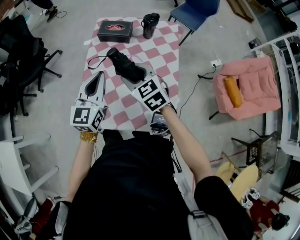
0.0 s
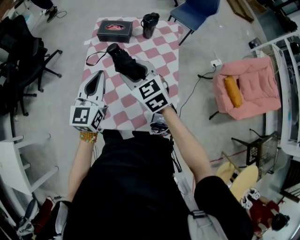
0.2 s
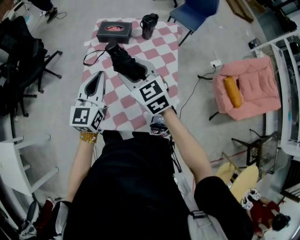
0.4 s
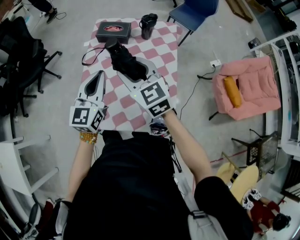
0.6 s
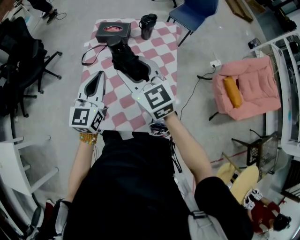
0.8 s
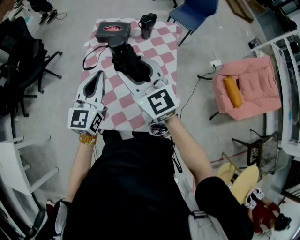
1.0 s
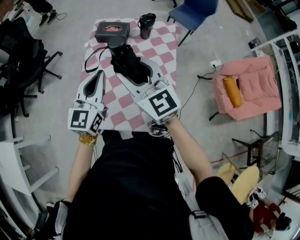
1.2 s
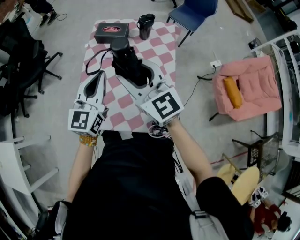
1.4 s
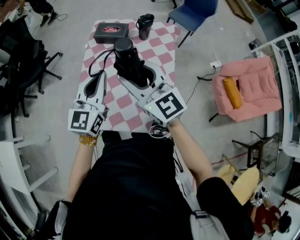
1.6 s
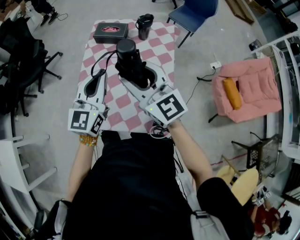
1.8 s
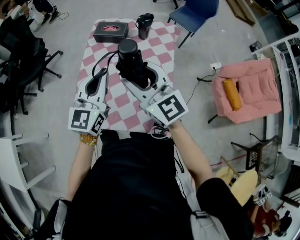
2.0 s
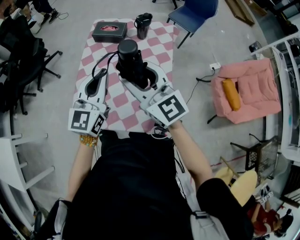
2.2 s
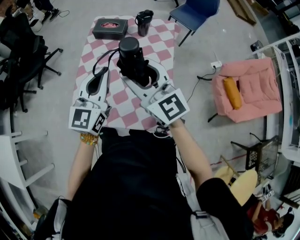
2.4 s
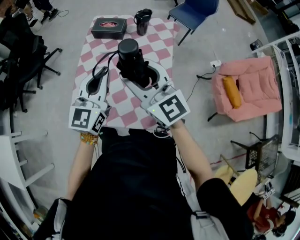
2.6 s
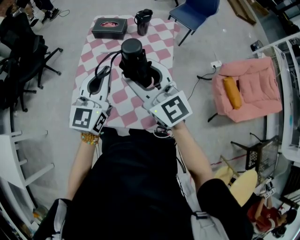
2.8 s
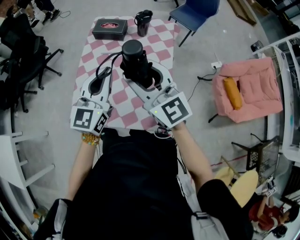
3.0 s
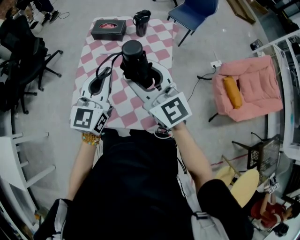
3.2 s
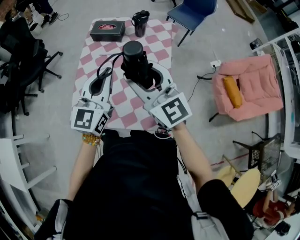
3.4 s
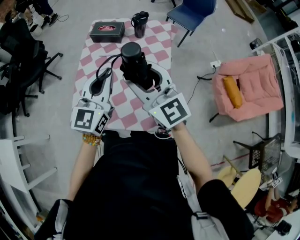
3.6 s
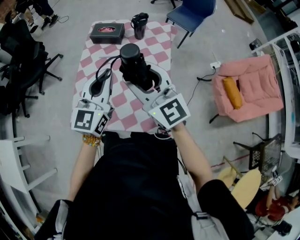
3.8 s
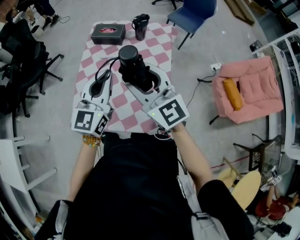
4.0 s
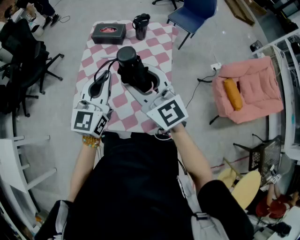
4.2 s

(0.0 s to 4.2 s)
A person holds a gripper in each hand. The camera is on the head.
0.0 s - 1.4 s: The right gripper travels upward by some 15 cm, and points its fingers approximately 30 degrees further upward. The left gripper changes place by about 5 cm.
1.4 s - 2.8 s: The right gripper changes place by approximately 5 cm, while the left gripper moves approximately 5 cm.
2.8 s - 4.2 s: The grippers move only a little.

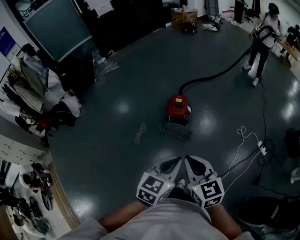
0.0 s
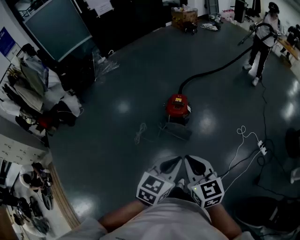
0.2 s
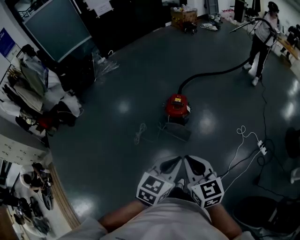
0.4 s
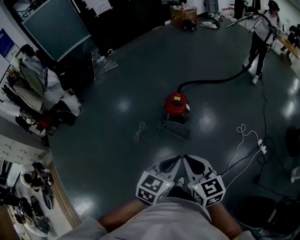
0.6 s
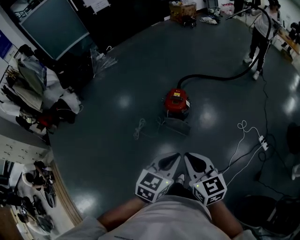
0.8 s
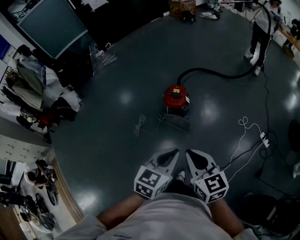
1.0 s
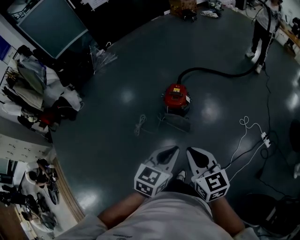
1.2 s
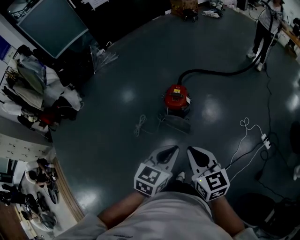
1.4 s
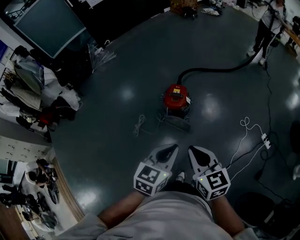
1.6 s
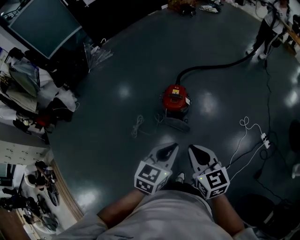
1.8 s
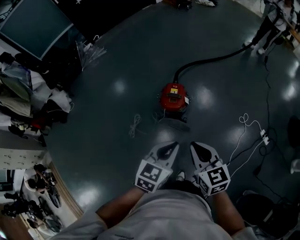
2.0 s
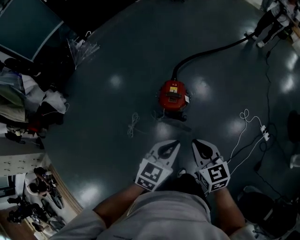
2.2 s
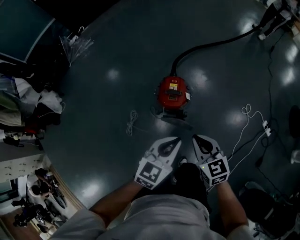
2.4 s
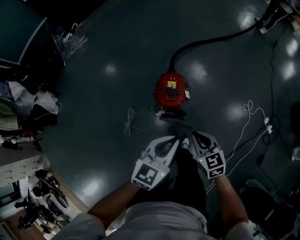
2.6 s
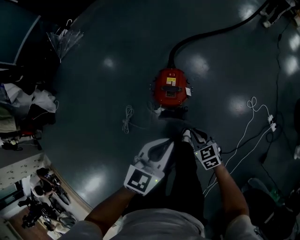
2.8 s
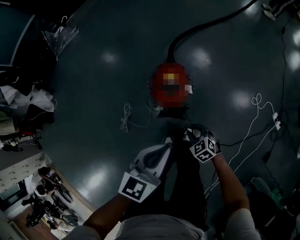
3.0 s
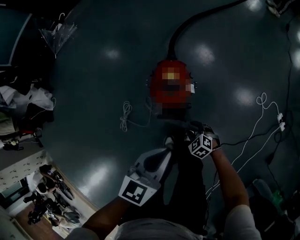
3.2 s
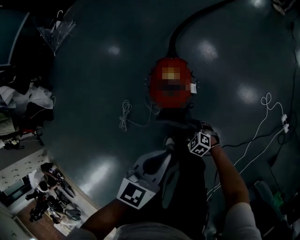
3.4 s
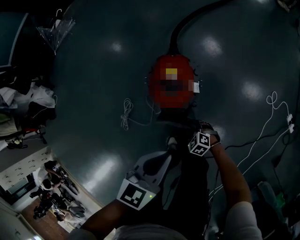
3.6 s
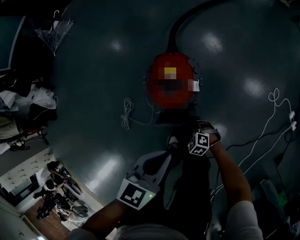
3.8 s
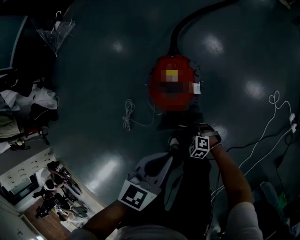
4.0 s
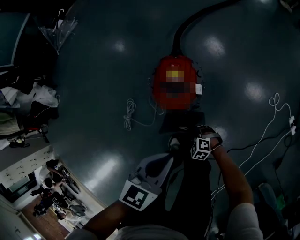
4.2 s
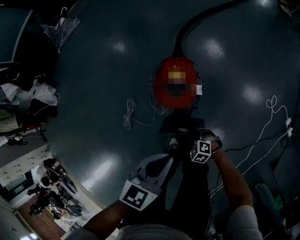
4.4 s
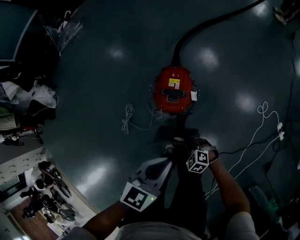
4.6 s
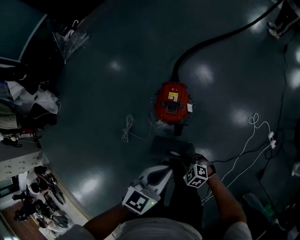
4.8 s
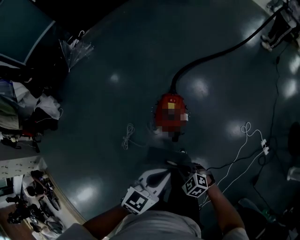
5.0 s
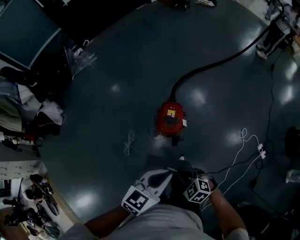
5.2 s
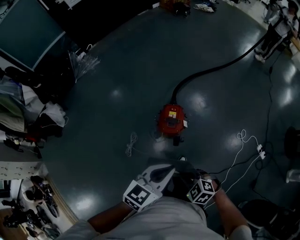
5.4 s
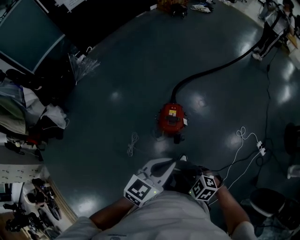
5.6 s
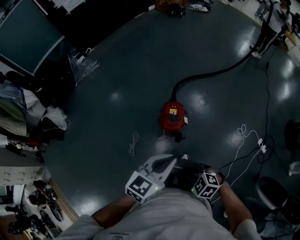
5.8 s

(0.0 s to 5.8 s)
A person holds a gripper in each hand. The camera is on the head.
0.0 s - 1.4 s: The right gripper travels to the right and forward by some 10 cm, while the left gripper shifts approximately 5 cm forward.
1.4 s - 2.8 s: The right gripper is displaced downward and forward by roughly 50 cm, and turns by approximately 30 degrees, while the left gripper heads forward and downward, covering about 35 cm.
2.8 s - 4.4 s: The right gripper is displaced downward by roughly 25 cm, swivels roughly 40 degrees, and opens and closes again, while the left gripper goes roughly 15 cm downward.
4.4 s - 5.8 s: The left gripper travels upward by some 35 cm, while the right gripper shifts roughly 50 cm upward.

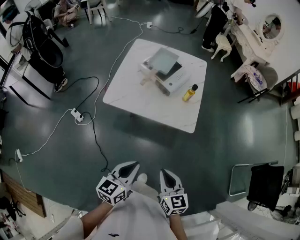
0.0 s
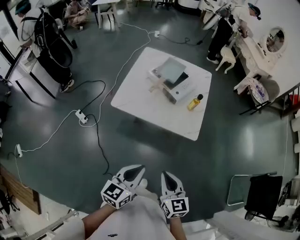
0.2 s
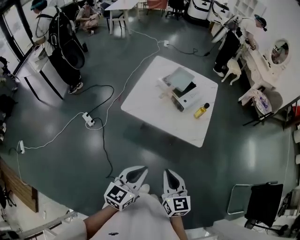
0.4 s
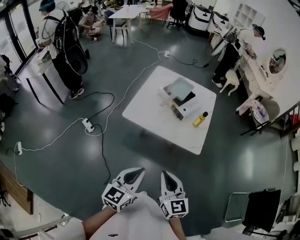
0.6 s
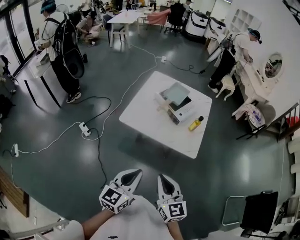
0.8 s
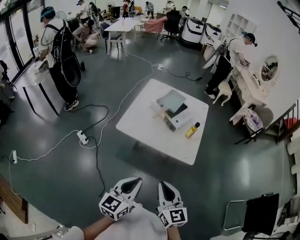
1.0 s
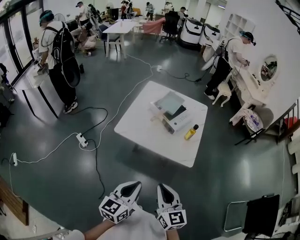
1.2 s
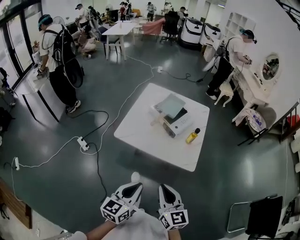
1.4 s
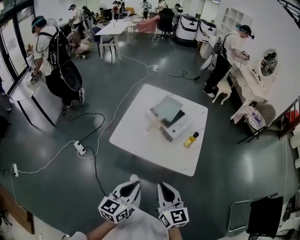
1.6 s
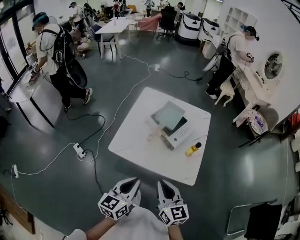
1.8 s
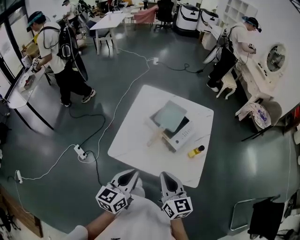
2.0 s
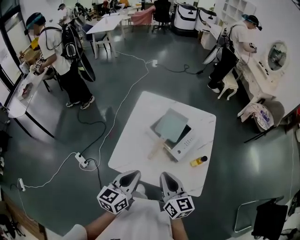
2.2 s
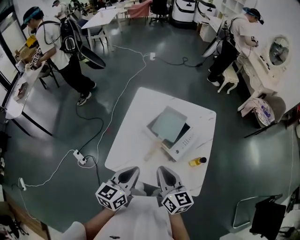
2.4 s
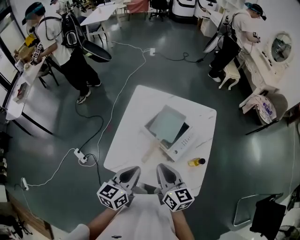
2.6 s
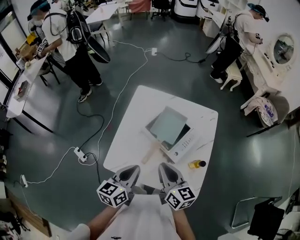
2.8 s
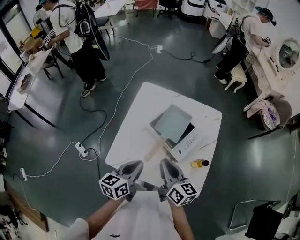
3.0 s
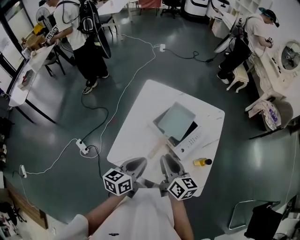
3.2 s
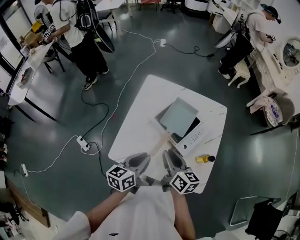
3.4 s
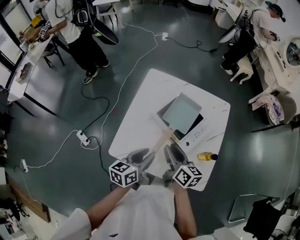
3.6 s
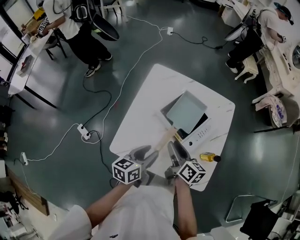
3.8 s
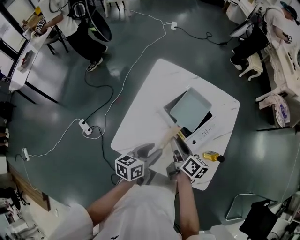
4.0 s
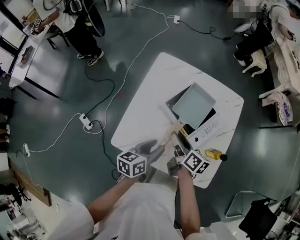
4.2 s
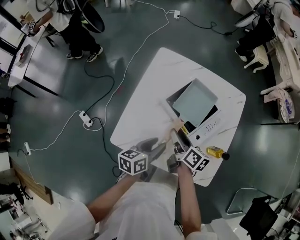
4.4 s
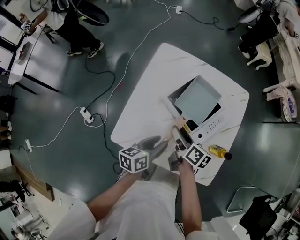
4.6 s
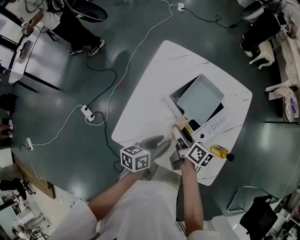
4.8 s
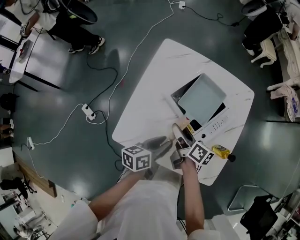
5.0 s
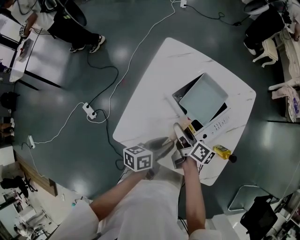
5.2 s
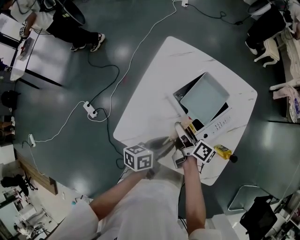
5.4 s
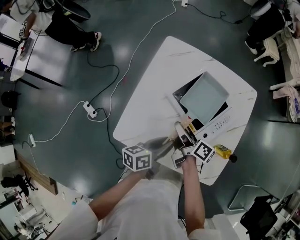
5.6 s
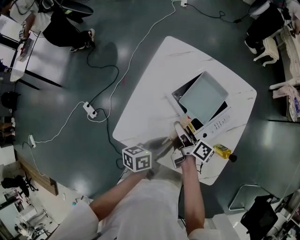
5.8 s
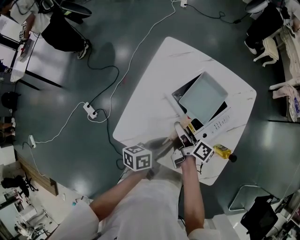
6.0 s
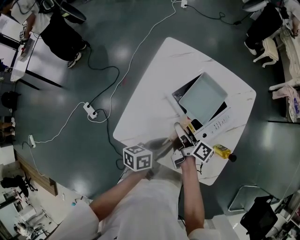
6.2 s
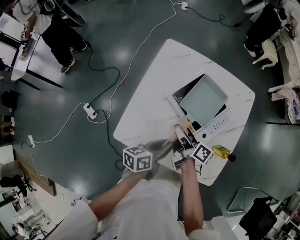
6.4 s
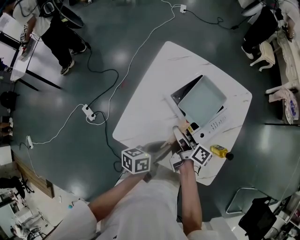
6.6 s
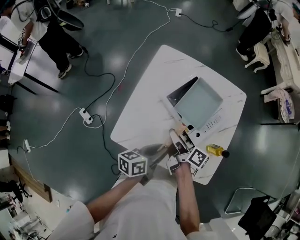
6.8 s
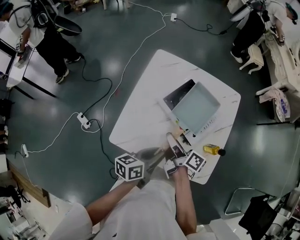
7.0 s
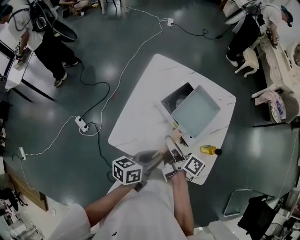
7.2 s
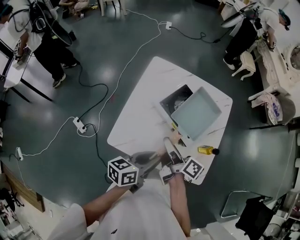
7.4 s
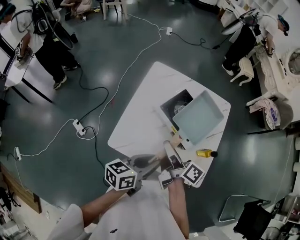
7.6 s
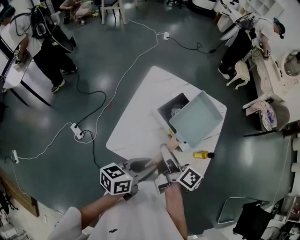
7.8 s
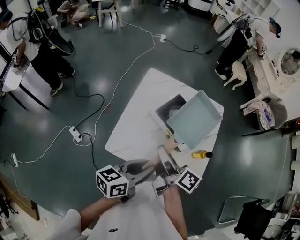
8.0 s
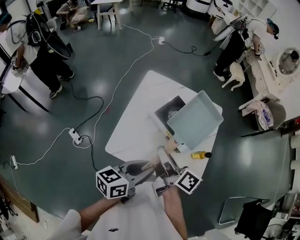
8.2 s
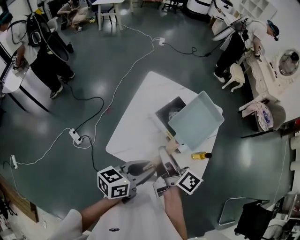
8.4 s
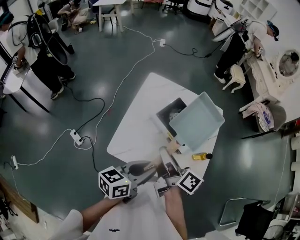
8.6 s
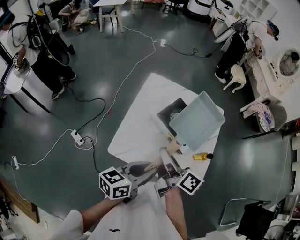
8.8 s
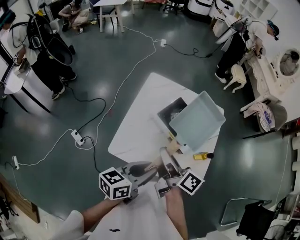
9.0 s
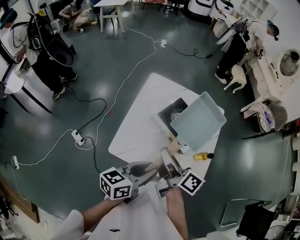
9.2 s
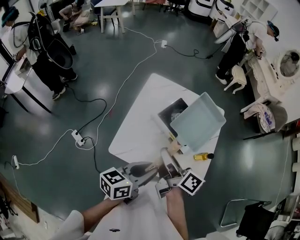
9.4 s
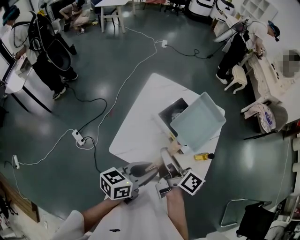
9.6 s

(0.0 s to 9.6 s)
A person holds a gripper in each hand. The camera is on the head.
0.0 s - 1.6 s: The left gripper travels forward and upward by roughly 10 cm. Meanwhile the right gripper heads forward, upward and to the left, covering approximately 15 cm.
1.6 s - 3.2 s: Both grippers travel together forward, approximately 35 cm. The right gripper changes its angle by roughly 30 degrees.
3.2 s - 4.8 s: Both grippers move downward and forward, roughly 15 cm. The right gripper swivels roughly 30 degrees, and opens its fingers. Meanwhile the left gripper opens up.
4.8 s - 6.4 s: The right gripper closes up.
6.4 s - 8.0 s: Both grippers move upward and backward, approximately 20 cm.
8.0 s - 9.6 s: The grippers make only small movements.

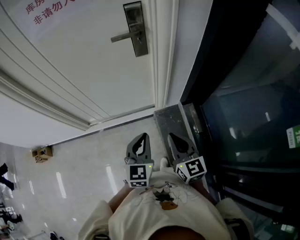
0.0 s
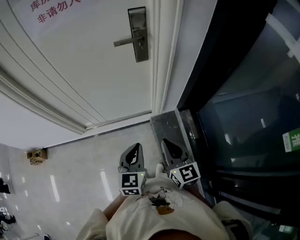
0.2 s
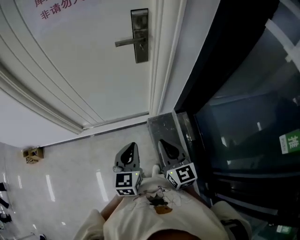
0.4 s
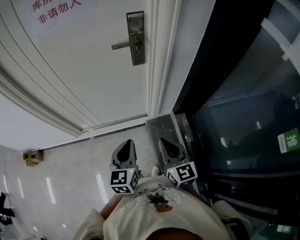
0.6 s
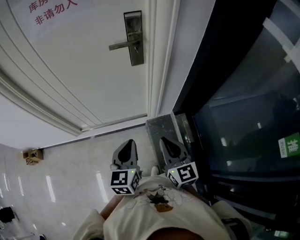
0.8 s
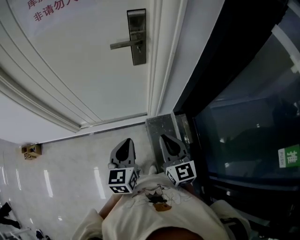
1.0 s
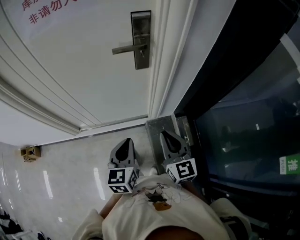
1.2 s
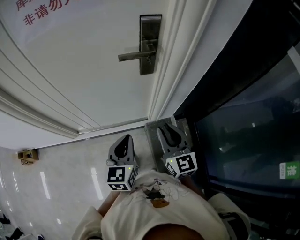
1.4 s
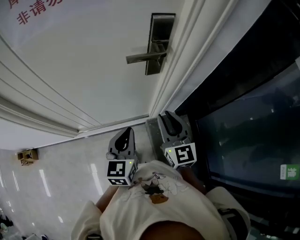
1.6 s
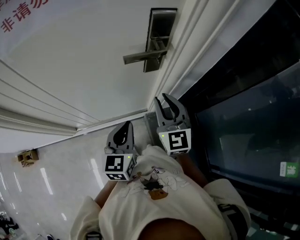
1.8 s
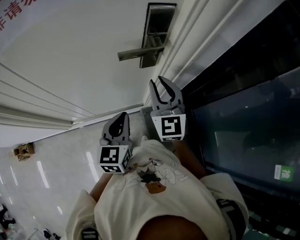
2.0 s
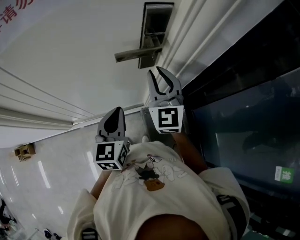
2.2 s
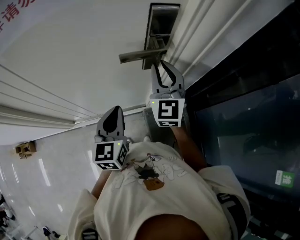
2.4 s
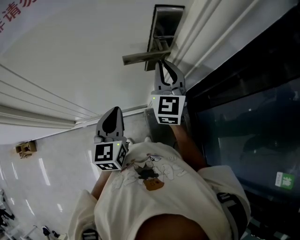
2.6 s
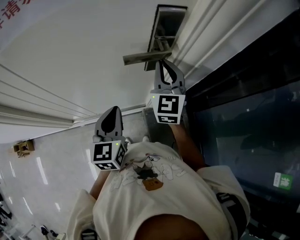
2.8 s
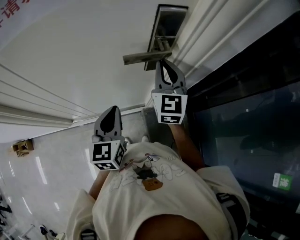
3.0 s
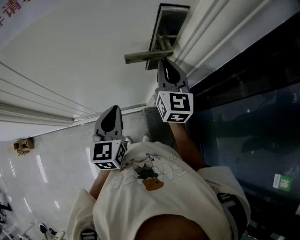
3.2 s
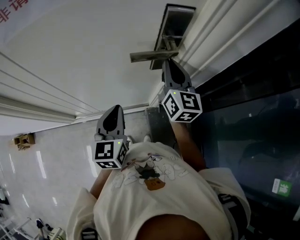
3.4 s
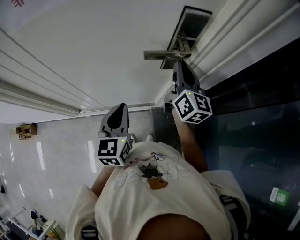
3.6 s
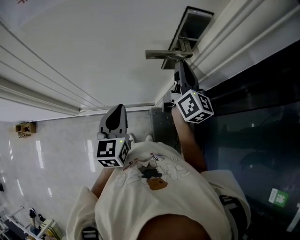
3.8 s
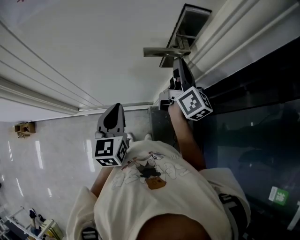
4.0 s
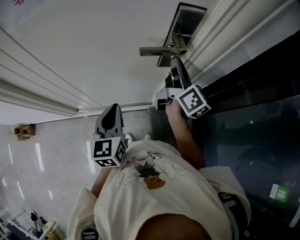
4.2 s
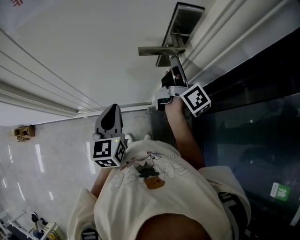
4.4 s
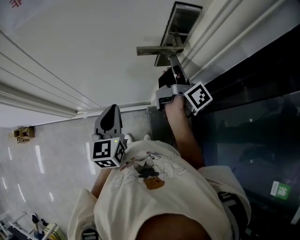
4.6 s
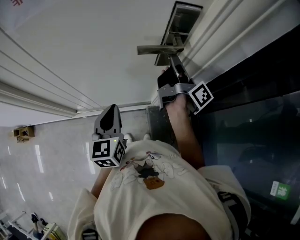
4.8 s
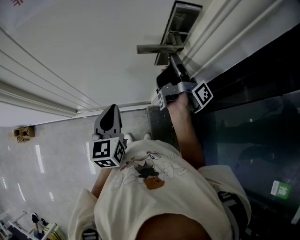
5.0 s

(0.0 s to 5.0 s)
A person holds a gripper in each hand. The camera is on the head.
0.0 s - 1.6 s: The right gripper heads forward, covering approximately 25 cm, and opens up; the left gripper is displaced forward and to the left by about 20 cm.
1.6 s - 3.4 s: The right gripper heads forward, covering some 20 cm. Meanwhile the left gripper travels forward by about 10 cm.
3.4 s - 5.0 s: The right gripper rolls clockwise, seen from behind, by roughly 80 degrees.
